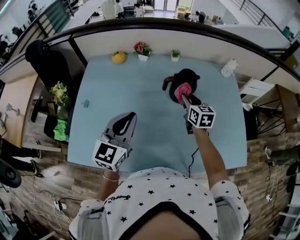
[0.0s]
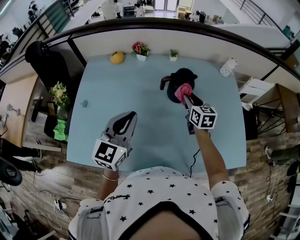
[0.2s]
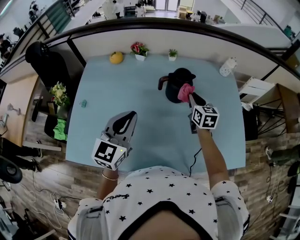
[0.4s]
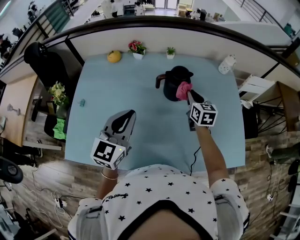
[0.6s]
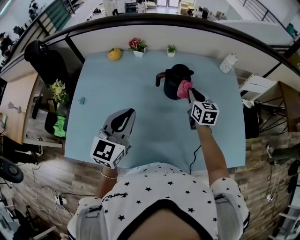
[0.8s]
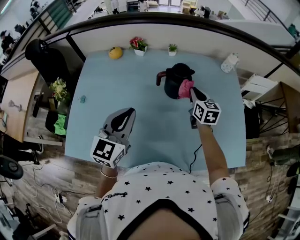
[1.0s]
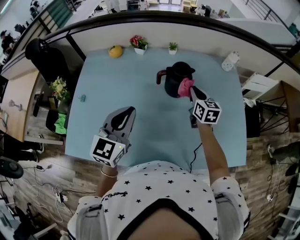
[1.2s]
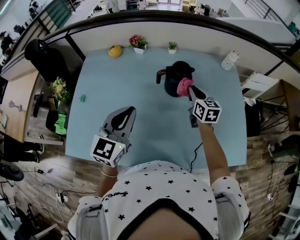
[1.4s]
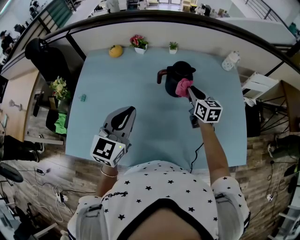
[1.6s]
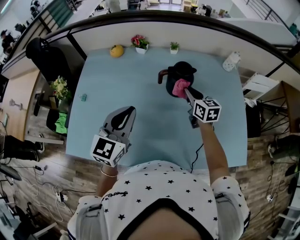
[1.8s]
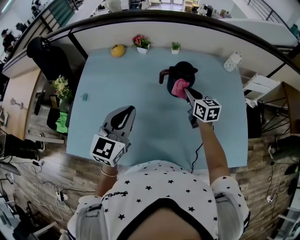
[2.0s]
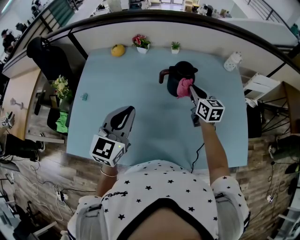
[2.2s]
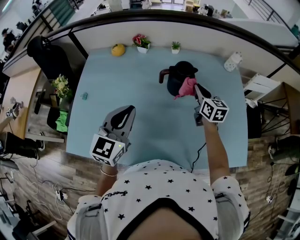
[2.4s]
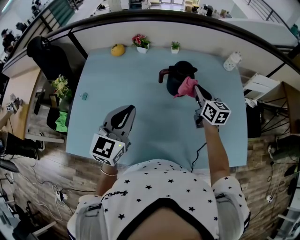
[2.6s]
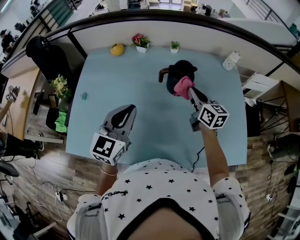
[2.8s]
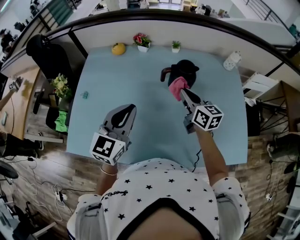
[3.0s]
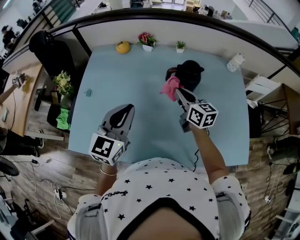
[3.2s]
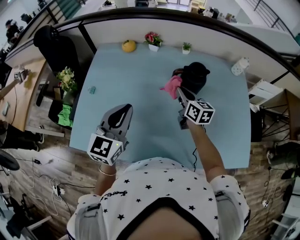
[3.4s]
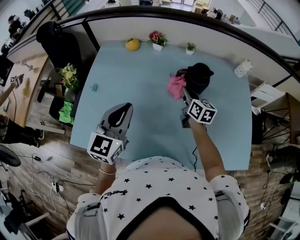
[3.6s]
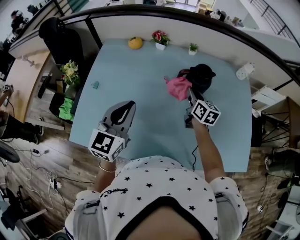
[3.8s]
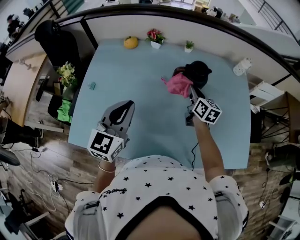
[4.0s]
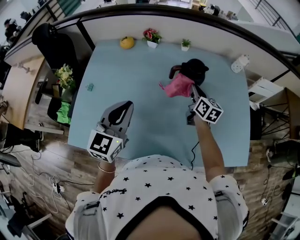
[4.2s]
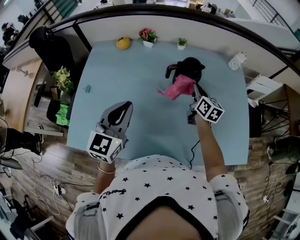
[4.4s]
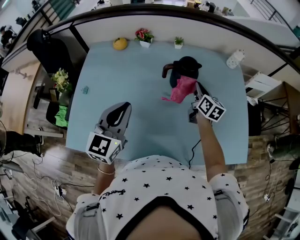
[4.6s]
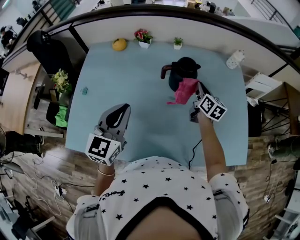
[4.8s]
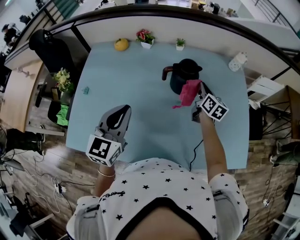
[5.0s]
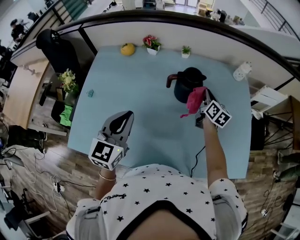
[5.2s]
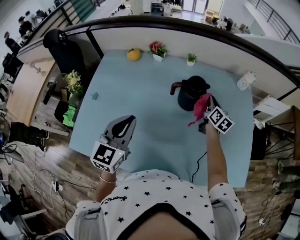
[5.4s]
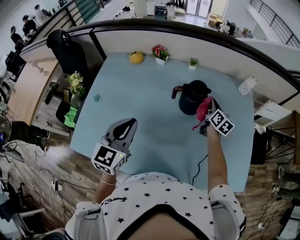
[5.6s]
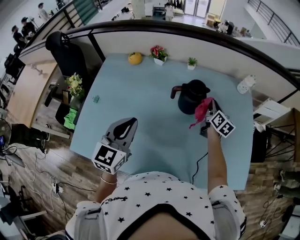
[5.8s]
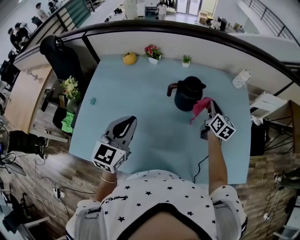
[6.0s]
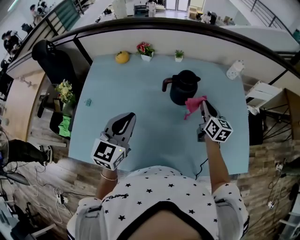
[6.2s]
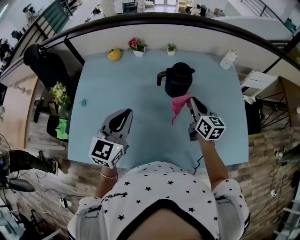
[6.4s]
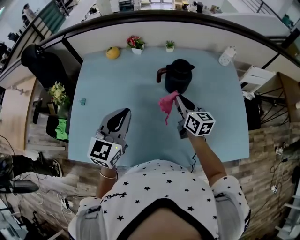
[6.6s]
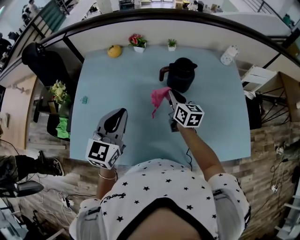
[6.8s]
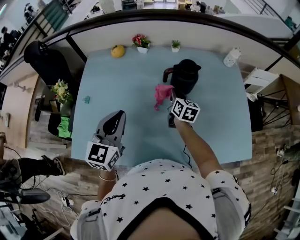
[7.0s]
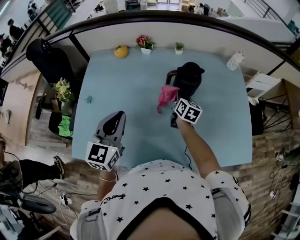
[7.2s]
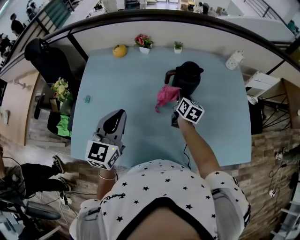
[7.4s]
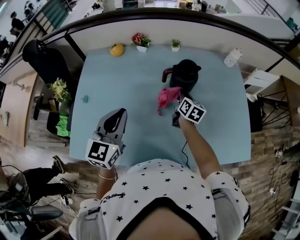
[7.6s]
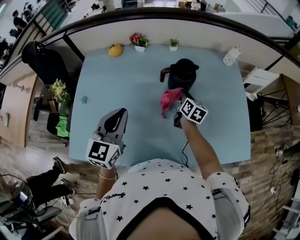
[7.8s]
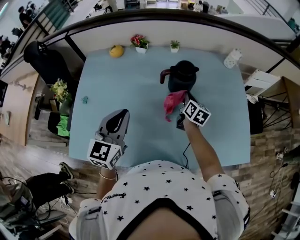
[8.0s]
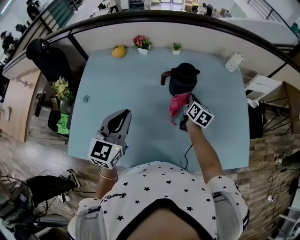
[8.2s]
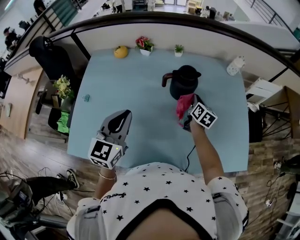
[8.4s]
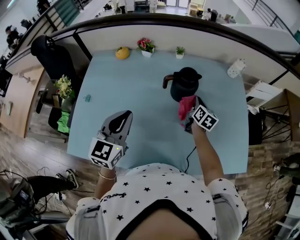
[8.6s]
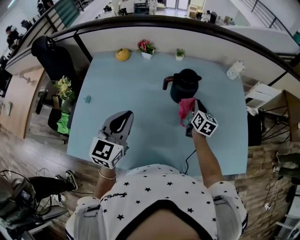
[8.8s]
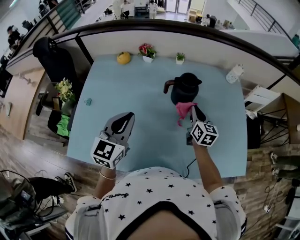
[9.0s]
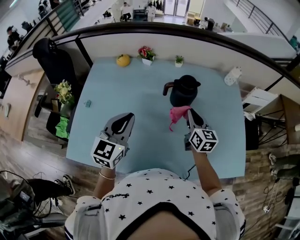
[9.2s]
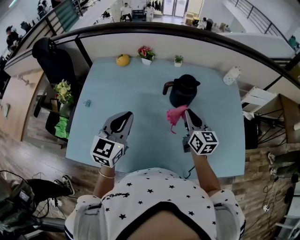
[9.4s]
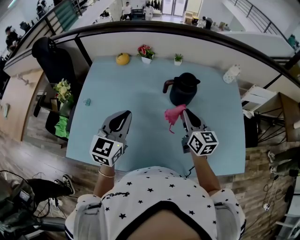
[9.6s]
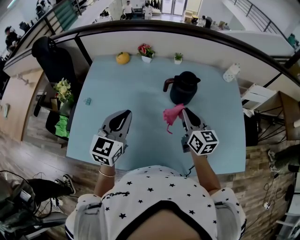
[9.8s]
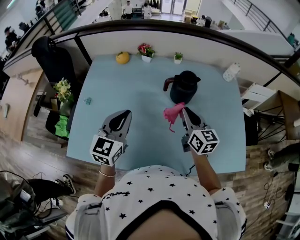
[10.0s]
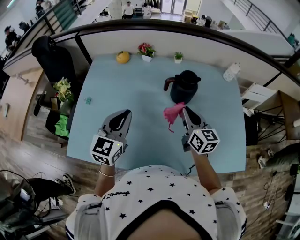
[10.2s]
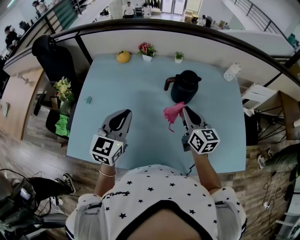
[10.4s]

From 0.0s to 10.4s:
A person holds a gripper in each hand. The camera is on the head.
From 0.0s to 1.4s: The right gripper shifts some 5 cm to the right, and closes its fingers.
From 1.4s to 3.0s: The right gripper heads to the left, covering approximately 5 cm.
From 3.0s to 4.4s: The right gripper moves downward and to the right, some 10 cm.
From 4.4s to 6.0s: The right gripper heads to the right, covering approximately 10 cm.
From 6.0s to 7.4s: The right gripper is displaced to the left and downward by roughly 15 cm, while the left gripper heads to the left, covering roughly 5 cm.
From 7.4s to 9.0s: The right gripper shifts roughly 10 cm to the right and upward.
From 9.0s to 10.4s: The right gripper shifts about 10 cm to the left, upward and backward.

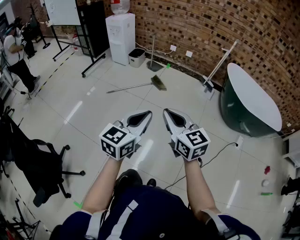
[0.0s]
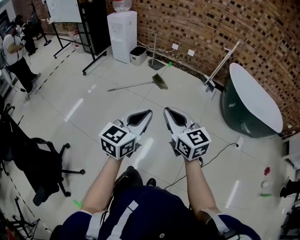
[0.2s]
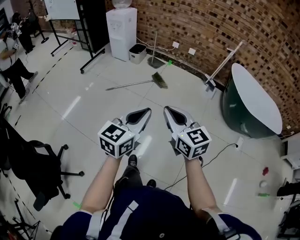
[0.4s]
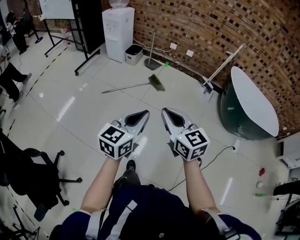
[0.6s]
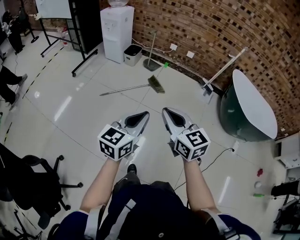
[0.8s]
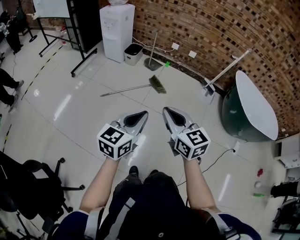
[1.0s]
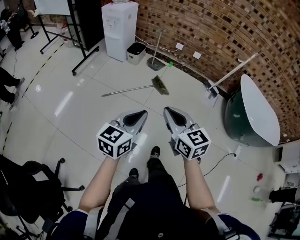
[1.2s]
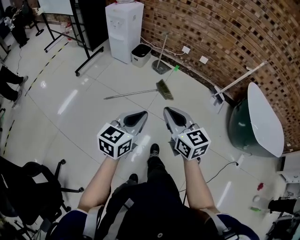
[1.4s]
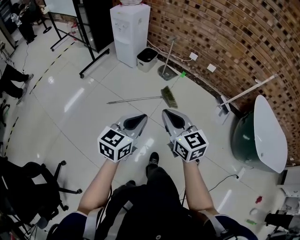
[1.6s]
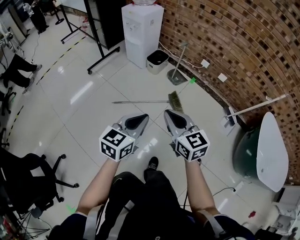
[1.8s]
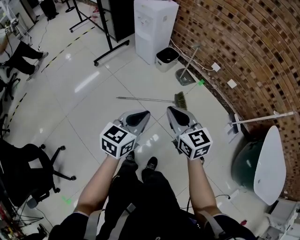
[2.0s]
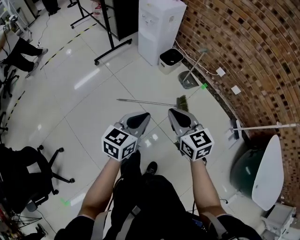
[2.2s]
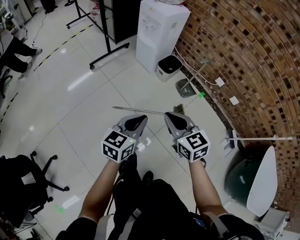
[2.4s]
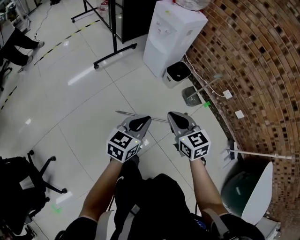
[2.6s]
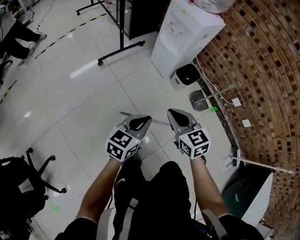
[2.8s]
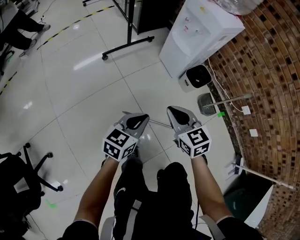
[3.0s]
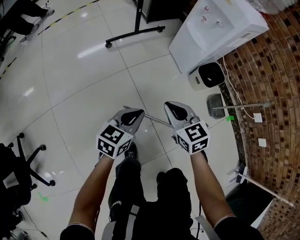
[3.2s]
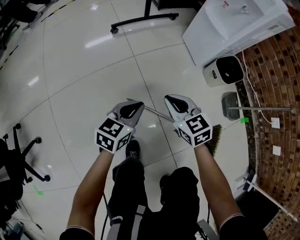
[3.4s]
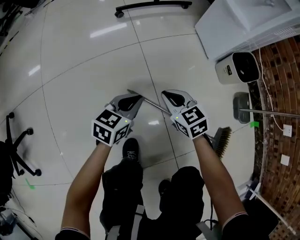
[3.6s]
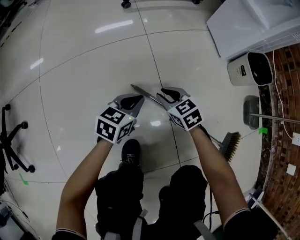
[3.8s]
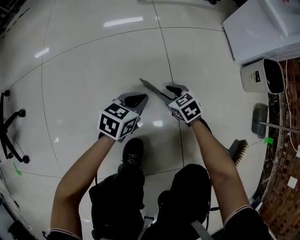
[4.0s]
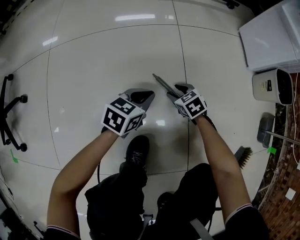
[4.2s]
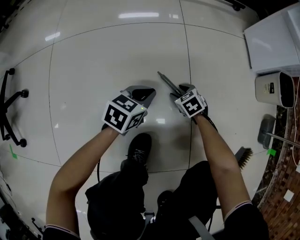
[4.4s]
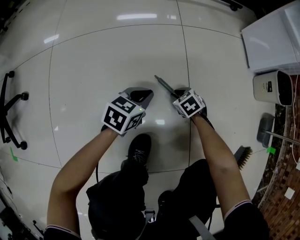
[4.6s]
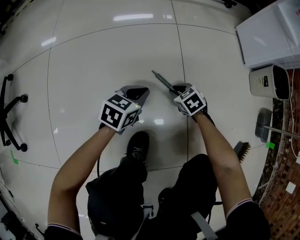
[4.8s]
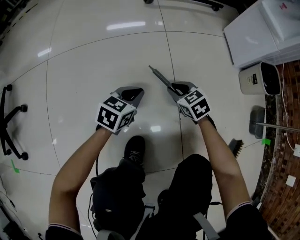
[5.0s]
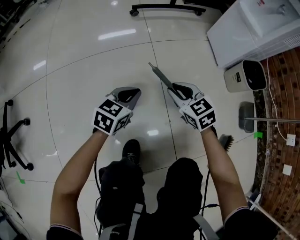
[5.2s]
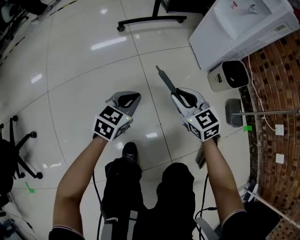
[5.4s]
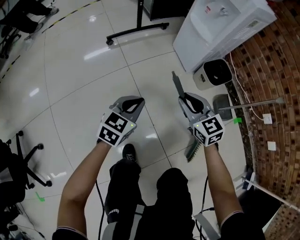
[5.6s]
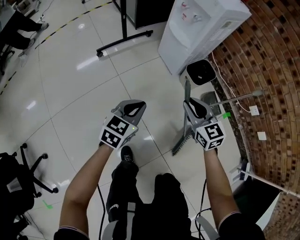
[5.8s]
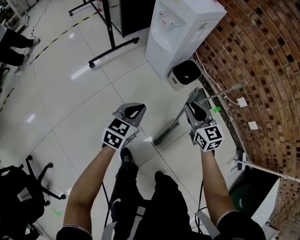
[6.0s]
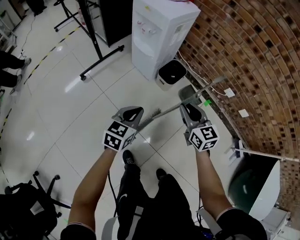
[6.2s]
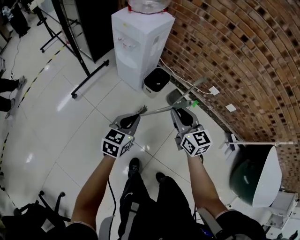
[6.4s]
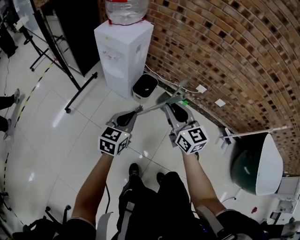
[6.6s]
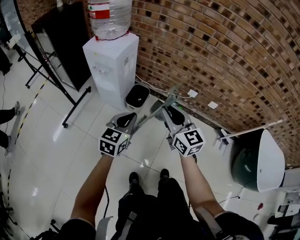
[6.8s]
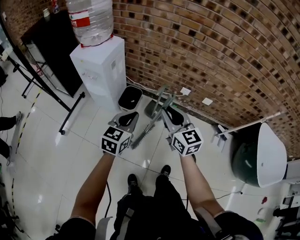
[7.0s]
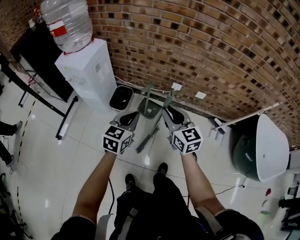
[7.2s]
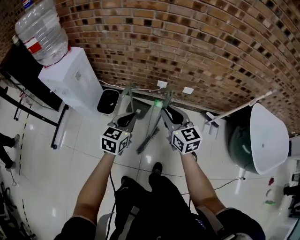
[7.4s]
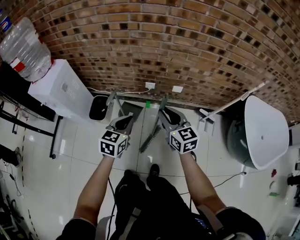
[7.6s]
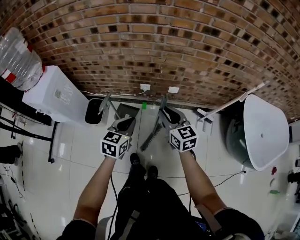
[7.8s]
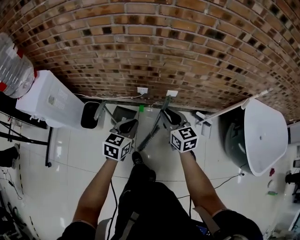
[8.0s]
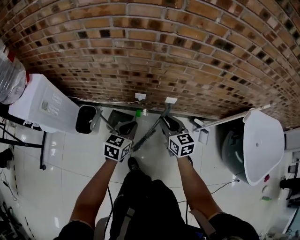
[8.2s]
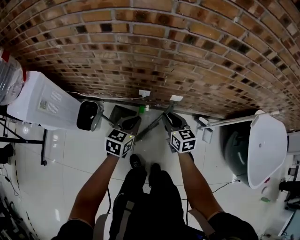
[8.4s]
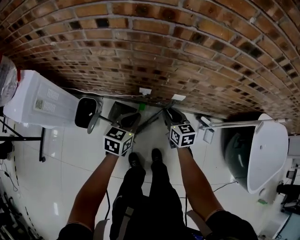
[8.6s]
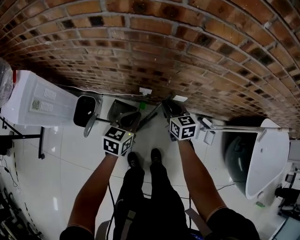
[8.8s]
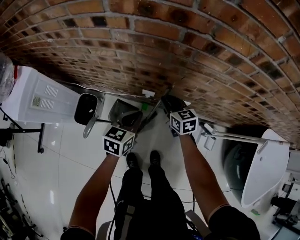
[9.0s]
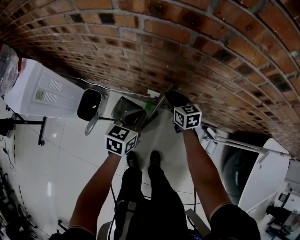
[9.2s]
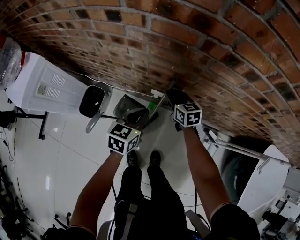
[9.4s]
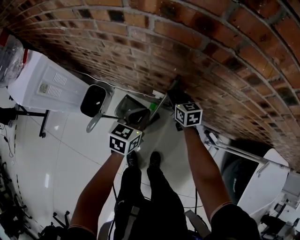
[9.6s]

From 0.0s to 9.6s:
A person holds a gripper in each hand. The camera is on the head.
From 0.0s to 1.6s: Both grippers are carried forward, some 40 cm.
From 1.6s to 3.2s: Both grippers are carried approximately 50 cm. The right gripper turns by about 40 degrees, while the left gripper rotates roughly 30 degrees.
From 3.2s to 4.8s: The grippers both shift downward by some 50 cm. The left gripper rotates approximately 20 degrees, while the right gripper rotates roughly 40 degrees, and opens, then closes again.
From 4.8s to 6.4s: The grippers both shift upward by about 70 cm. The right gripper points its fingers some 40 degrees further upward. The left gripper turns by about 40 degrees.
From 6.4s to 8.0s: Both grippers are carried about 50 cm. The right gripper changes its angle by about 30 degrees, while the left gripper changes its angle by approximately 30 degrees.
From 8.0s to 9.6s: The right gripper heads forward and downward, covering about 35 cm, and swivels some 20 degrees; the left gripper moves forward and downward, roughly 20 cm.

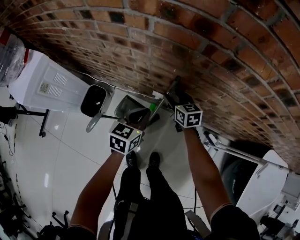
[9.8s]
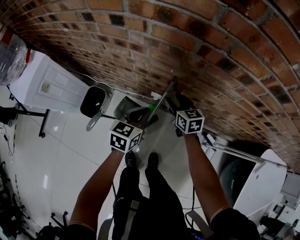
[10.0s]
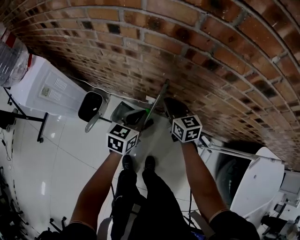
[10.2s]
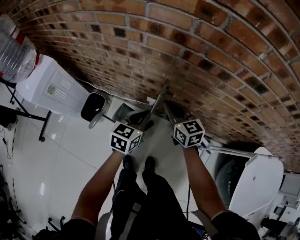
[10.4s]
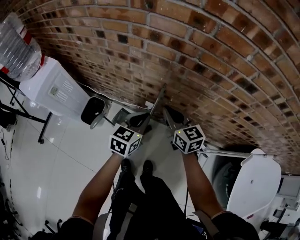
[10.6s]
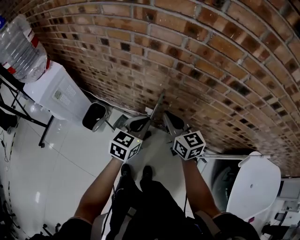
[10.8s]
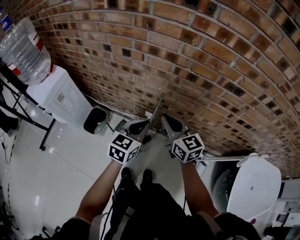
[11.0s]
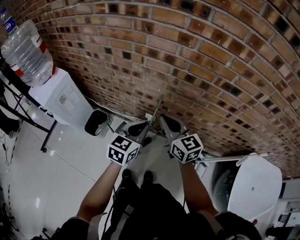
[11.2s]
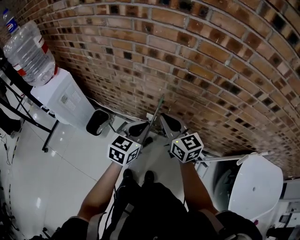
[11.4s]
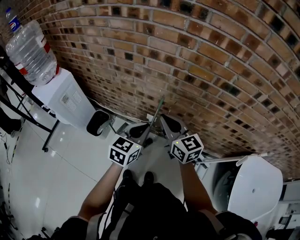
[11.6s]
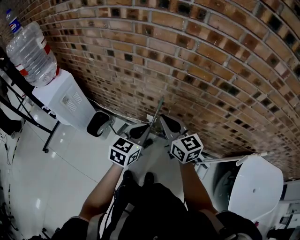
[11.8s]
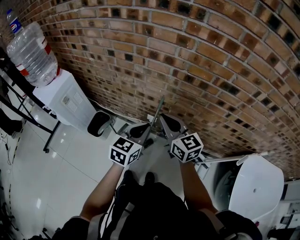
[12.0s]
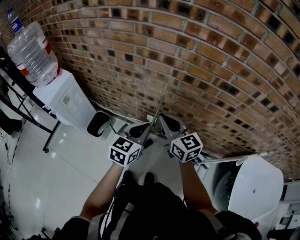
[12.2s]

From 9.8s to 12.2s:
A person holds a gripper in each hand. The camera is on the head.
From 9.8s to 11.0s: The left gripper shifts approximately 20 cm upward and backward, while the right gripper goes approximately 30 cm upward and backward, changes its angle by about 20 degrees, and closes its fingers.
From 11.0s to 12.2s: There are only small adjustments of the grippers.

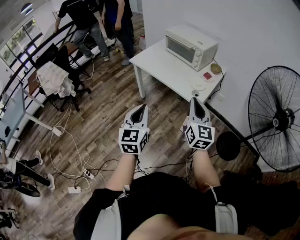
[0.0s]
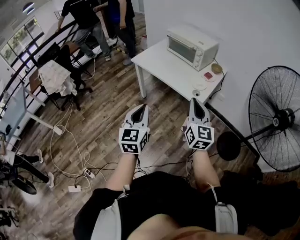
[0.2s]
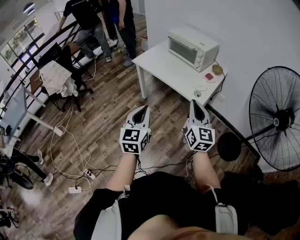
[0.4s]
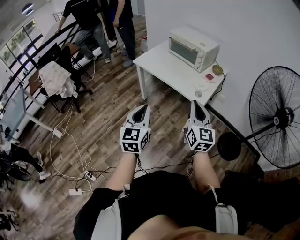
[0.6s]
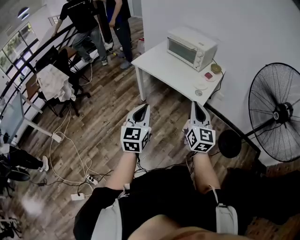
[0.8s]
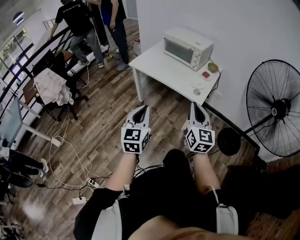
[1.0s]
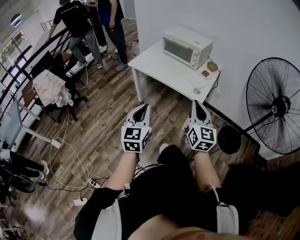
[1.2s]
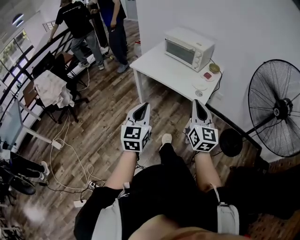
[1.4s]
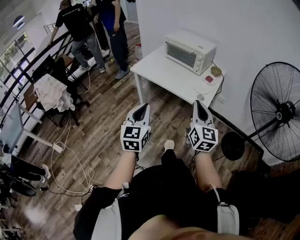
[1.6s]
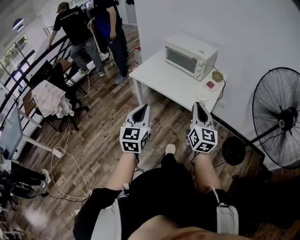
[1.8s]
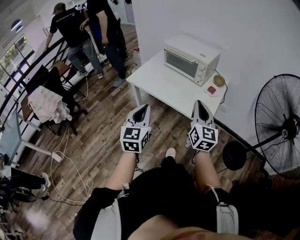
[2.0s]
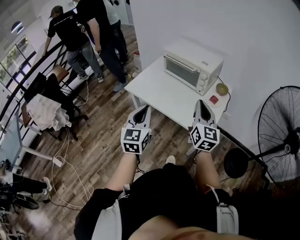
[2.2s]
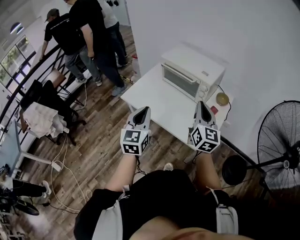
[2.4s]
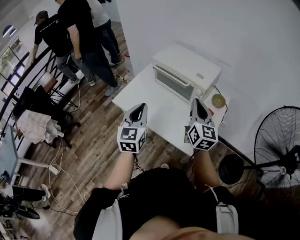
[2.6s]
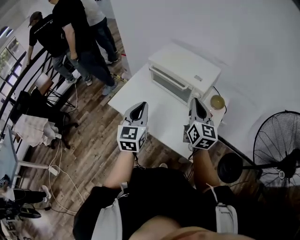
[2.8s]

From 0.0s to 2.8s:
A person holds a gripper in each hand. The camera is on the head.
From 0.0s to 1.4s: The two grippers go about 5 cm to the left.
From 1.4s to 2.8s: The two grippers travel together, forward, about 50 cm.
